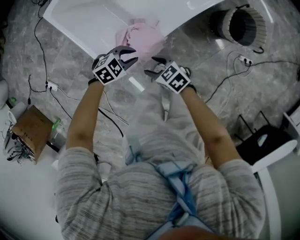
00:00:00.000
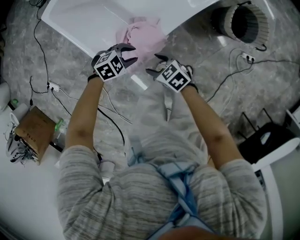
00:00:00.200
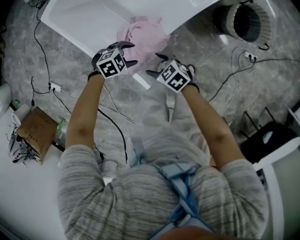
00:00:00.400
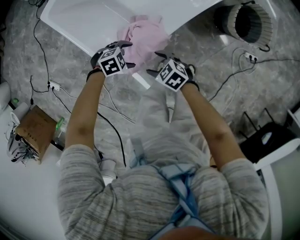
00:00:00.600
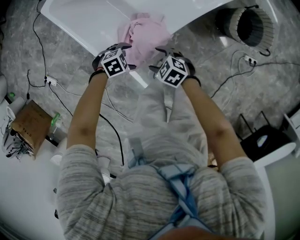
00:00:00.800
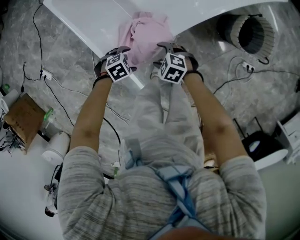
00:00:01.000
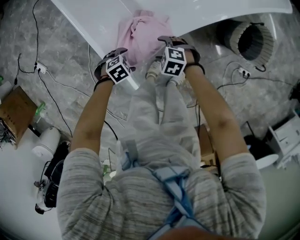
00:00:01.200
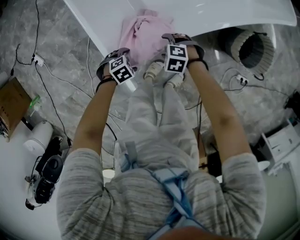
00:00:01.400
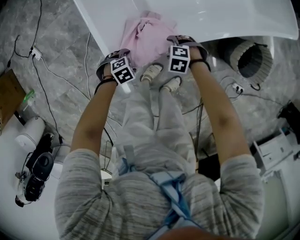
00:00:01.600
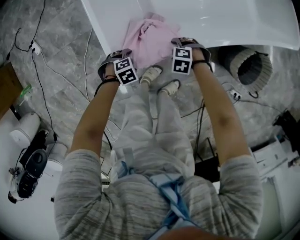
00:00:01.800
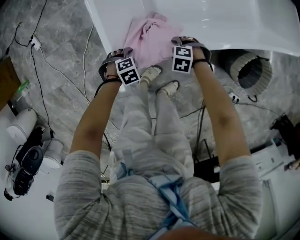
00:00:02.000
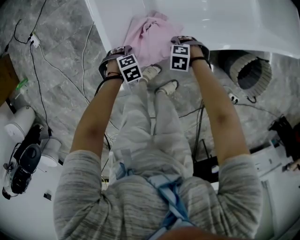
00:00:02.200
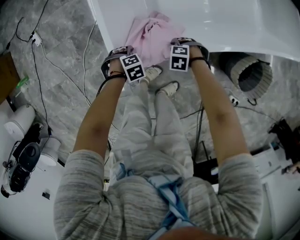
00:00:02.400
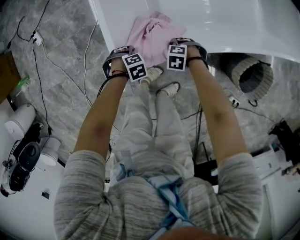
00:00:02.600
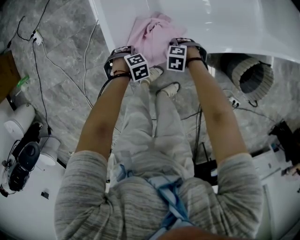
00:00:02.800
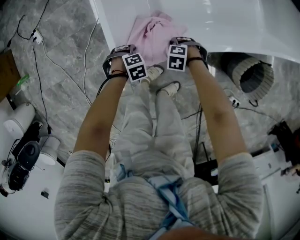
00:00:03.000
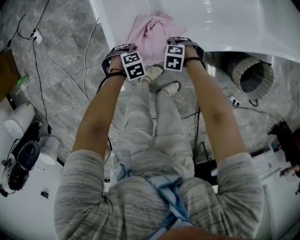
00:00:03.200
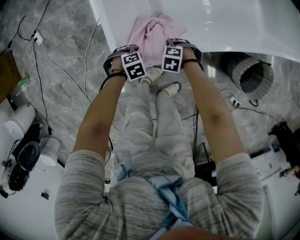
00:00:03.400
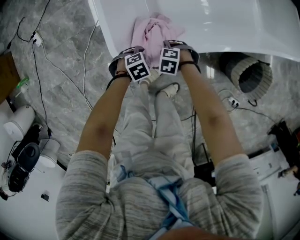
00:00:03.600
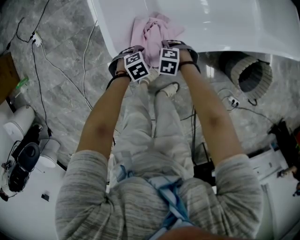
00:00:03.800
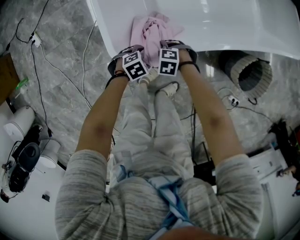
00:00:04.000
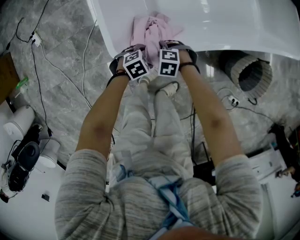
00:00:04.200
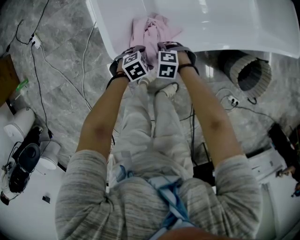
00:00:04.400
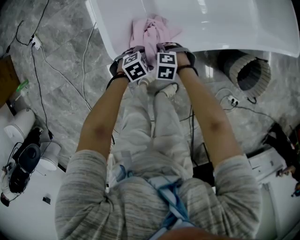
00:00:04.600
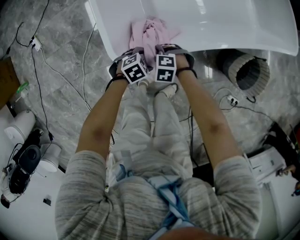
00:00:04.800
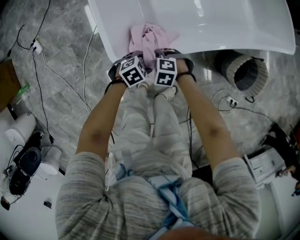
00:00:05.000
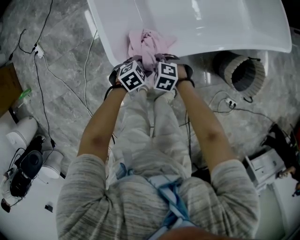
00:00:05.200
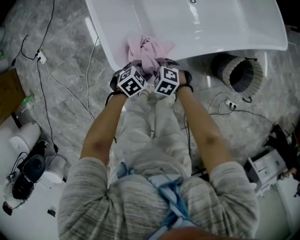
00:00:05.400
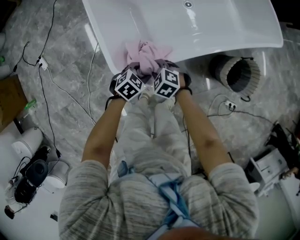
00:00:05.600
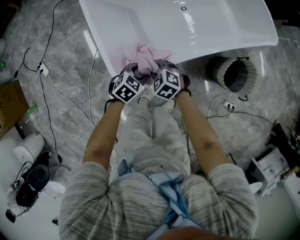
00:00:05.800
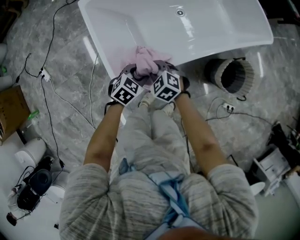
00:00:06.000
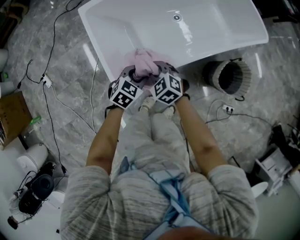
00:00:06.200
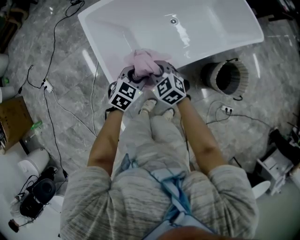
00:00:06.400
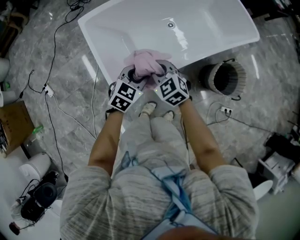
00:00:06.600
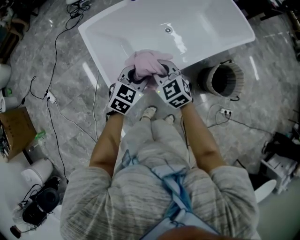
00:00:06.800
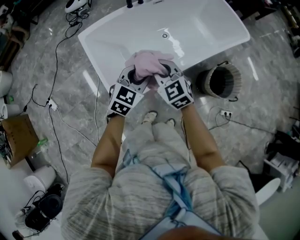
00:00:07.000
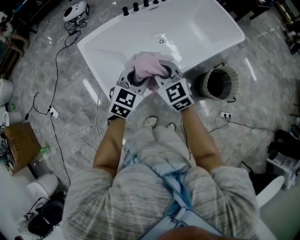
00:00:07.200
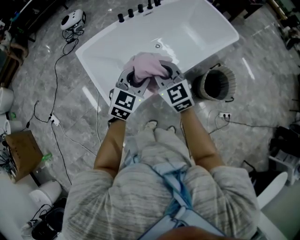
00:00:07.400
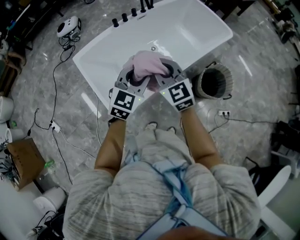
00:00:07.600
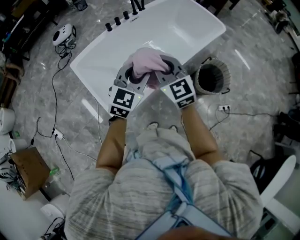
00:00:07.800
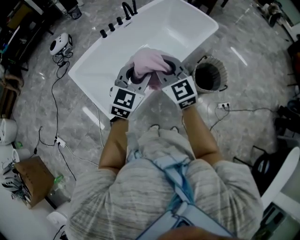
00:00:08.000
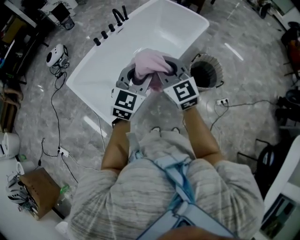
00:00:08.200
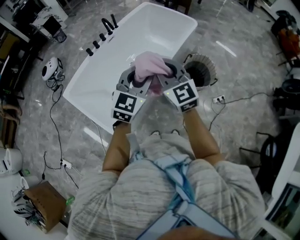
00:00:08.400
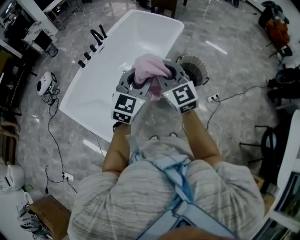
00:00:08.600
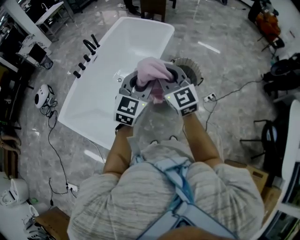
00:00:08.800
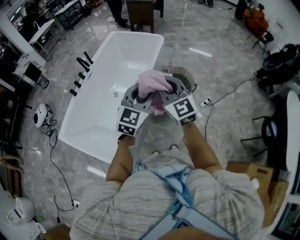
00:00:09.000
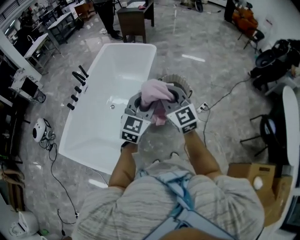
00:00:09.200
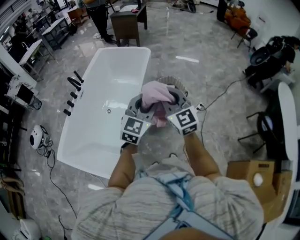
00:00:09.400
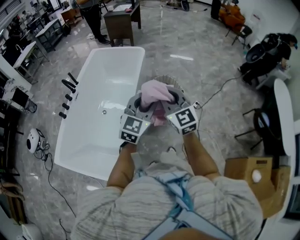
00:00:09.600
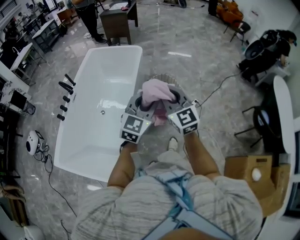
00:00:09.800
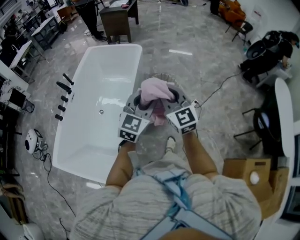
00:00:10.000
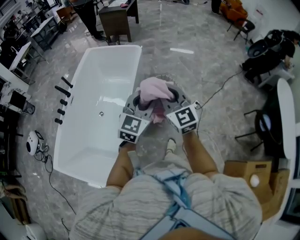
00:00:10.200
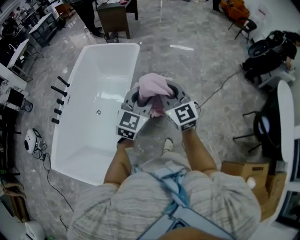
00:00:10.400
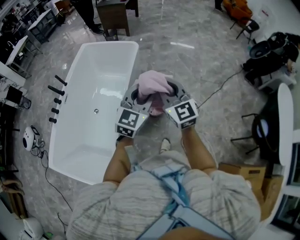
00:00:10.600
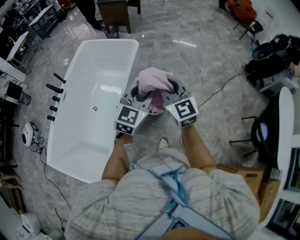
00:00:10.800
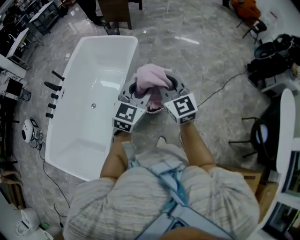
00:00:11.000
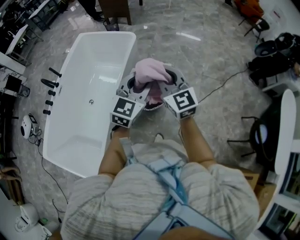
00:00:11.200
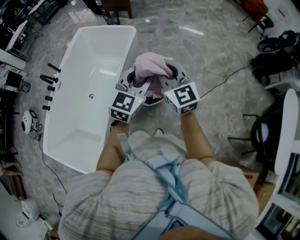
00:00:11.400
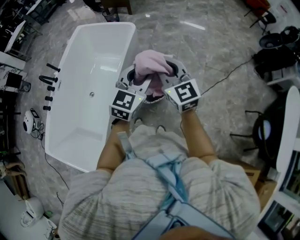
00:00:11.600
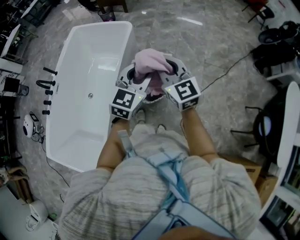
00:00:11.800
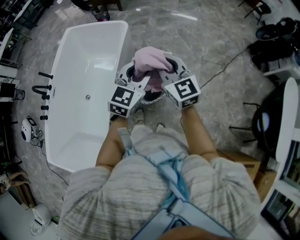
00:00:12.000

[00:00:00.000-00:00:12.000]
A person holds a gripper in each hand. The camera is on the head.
00:00:00.000 to 00:00:01.600: The grippers both shift downward by some 15 cm. The right gripper rotates around the line of its fingers by roughly 60 degrees, counterclockwise from behind. Meanwhile the left gripper rotates roughly 30 degrees, and opens its fingers.
00:00:01.600 to 00:00:03.000: The right gripper travels downward by roughly 5 cm.
00:00:03.000 to 00:00:04.400: The left gripper ends up roughly 10 cm from where it was, and turns by roughly 20 degrees. Meanwhile the right gripper moves approximately 5 cm.
00:00:04.400 to 00:00:06.000: Both grippers travel together upward, roughly 20 cm. The left gripper turns by about 20 degrees, and closes. The right gripper rotates some 40 degrees, and closes.
00:00:06.000 to 00:00:07.600: Both grippers travel together upward, some 35 cm. The left gripper tilts its fingers approximately 30 degrees upward. Meanwhile the right gripper angles its fingers upward, by approximately 40 degrees.
00:00:07.600 to 00:00:09.000: The left gripper changes place by some 25 cm, and swivels about 30 degrees. The right gripper shifts by roughly 25 cm, and rotates roughly 40 degrees.
00:00:09.000 to 00:00:10.400: The two grippers go some 20 cm forward and to the right.
00:00:10.400 to 00:00:12.000: Both grippers travel together forward and to the right, about 25 cm.

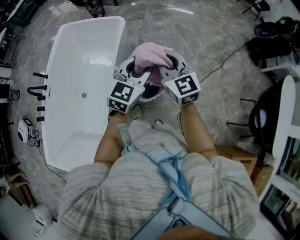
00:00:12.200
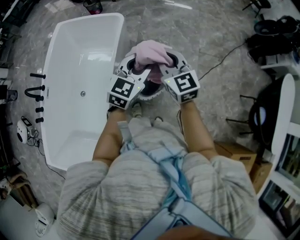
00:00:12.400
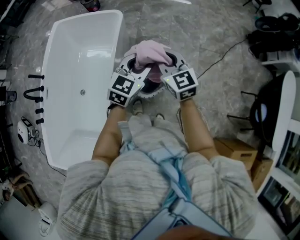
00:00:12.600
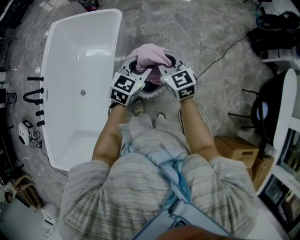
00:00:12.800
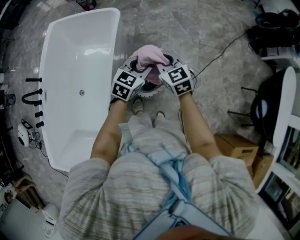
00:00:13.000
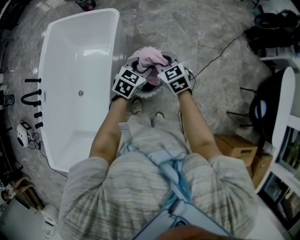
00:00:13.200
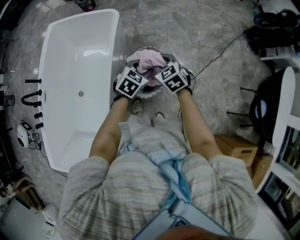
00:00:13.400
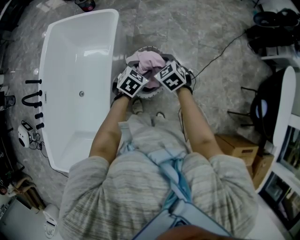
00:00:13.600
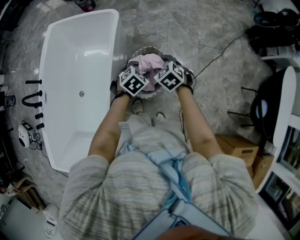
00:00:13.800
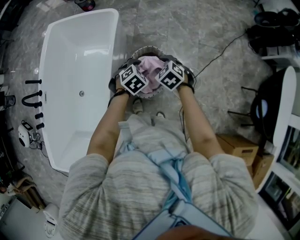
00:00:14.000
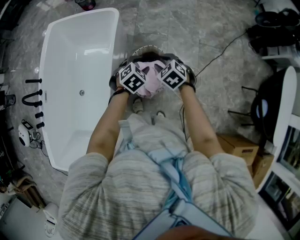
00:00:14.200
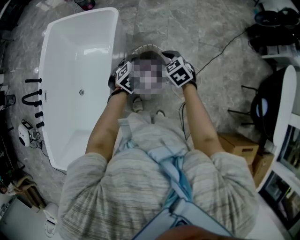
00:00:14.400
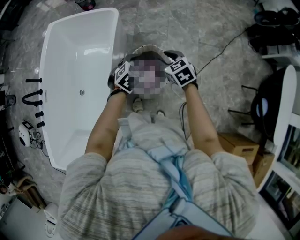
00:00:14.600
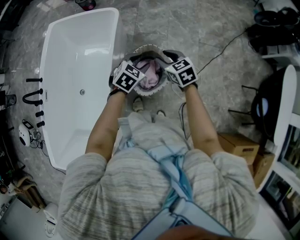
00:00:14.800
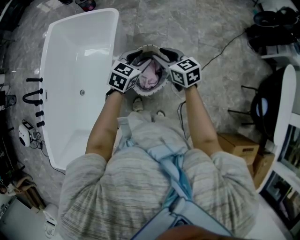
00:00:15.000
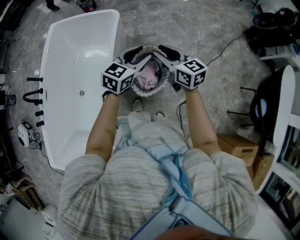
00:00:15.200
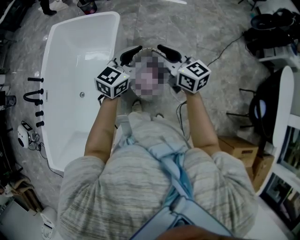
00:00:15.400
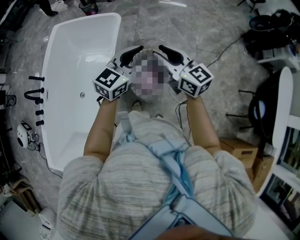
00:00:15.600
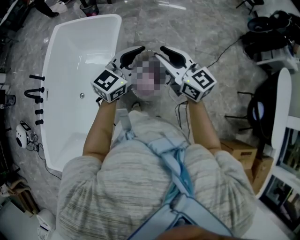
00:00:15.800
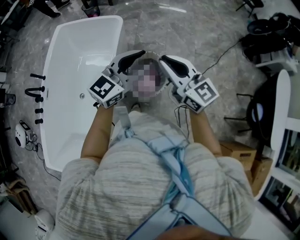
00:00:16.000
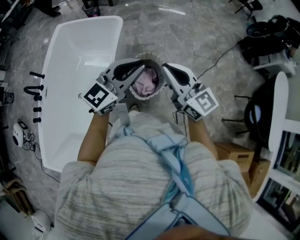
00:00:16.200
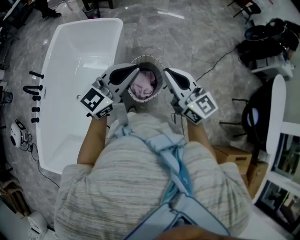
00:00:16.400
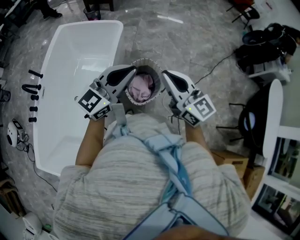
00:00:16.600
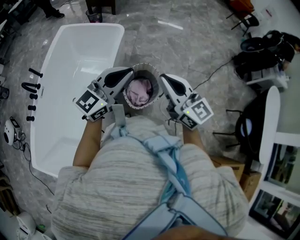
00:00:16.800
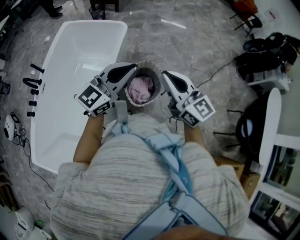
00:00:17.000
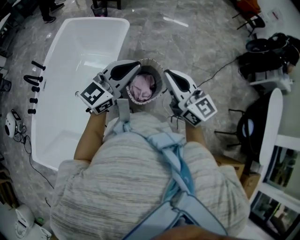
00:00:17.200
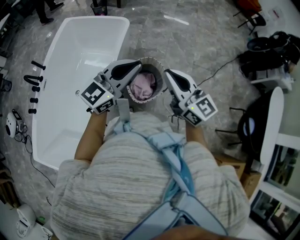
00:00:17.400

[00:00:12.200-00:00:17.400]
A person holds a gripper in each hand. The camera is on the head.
00:00:12.200 to 00:00:14.000: Both grippers move downward, some 25 cm. The right gripper angles its fingers downward, by some 50 degrees, and opens its fingers; the left gripper tilts its fingers approximately 50 degrees downward.
00:00:14.000 to 00:00:15.600: The grippers both shift upward by approximately 25 cm. The left gripper tips its fingers upward by some 50 degrees. The right gripper tilts its fingers about 50 degrees upward.
00:00:15.600 to 00:00:17.400: Both grippers travel together backward and upward, roughly 10 cm. The left gripper closes; the right gripper closes up.

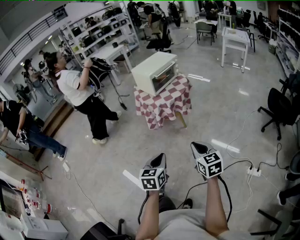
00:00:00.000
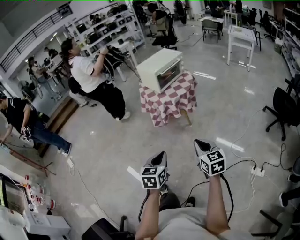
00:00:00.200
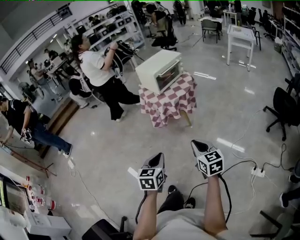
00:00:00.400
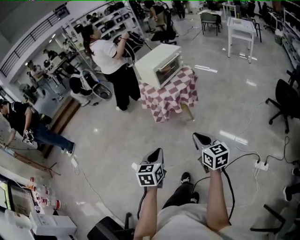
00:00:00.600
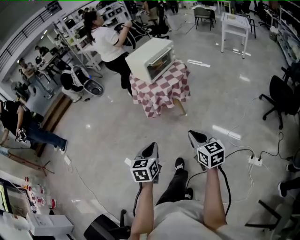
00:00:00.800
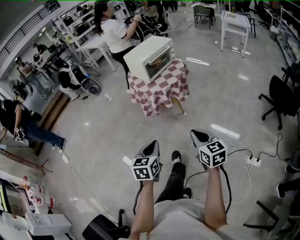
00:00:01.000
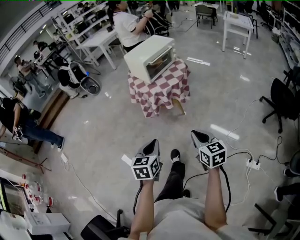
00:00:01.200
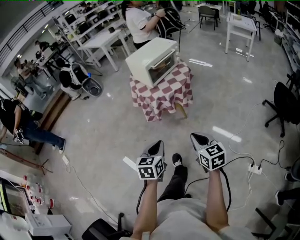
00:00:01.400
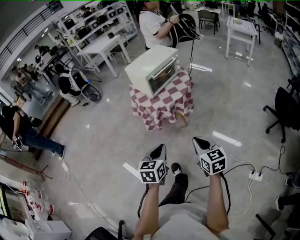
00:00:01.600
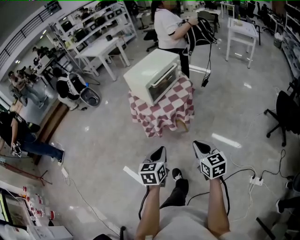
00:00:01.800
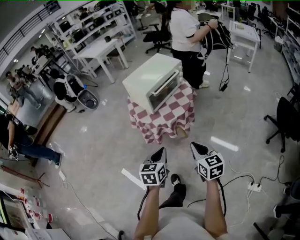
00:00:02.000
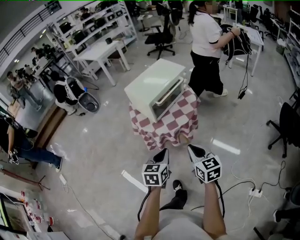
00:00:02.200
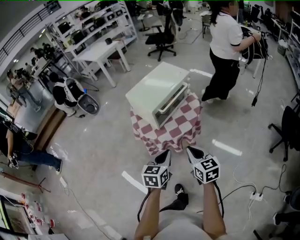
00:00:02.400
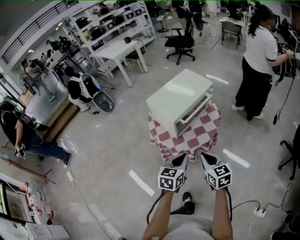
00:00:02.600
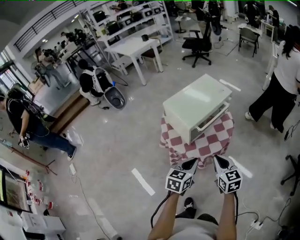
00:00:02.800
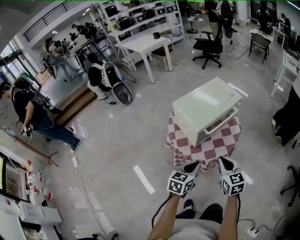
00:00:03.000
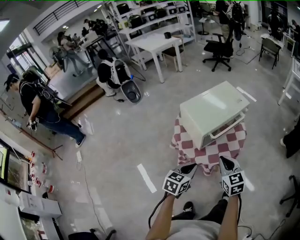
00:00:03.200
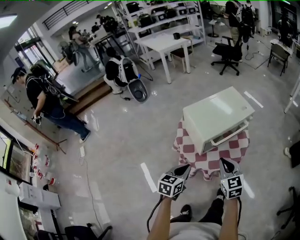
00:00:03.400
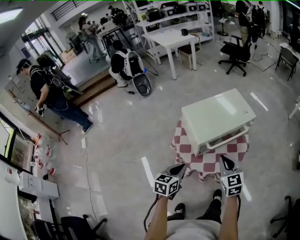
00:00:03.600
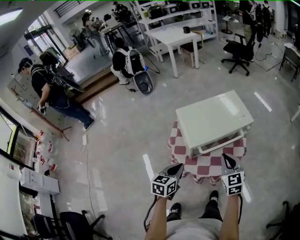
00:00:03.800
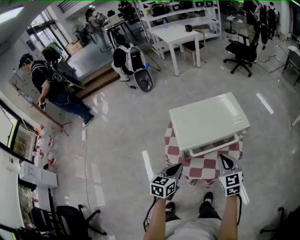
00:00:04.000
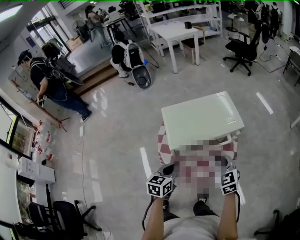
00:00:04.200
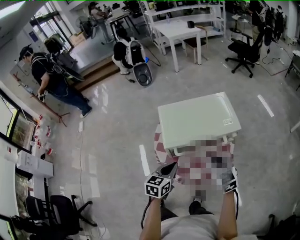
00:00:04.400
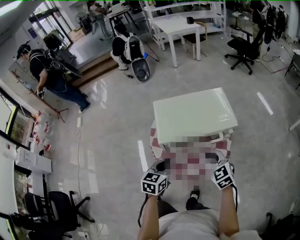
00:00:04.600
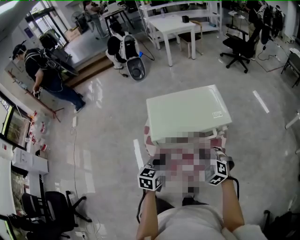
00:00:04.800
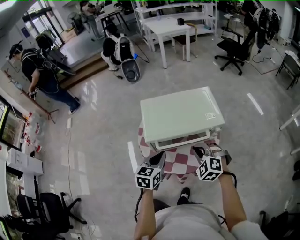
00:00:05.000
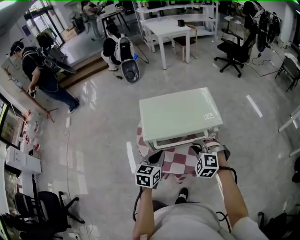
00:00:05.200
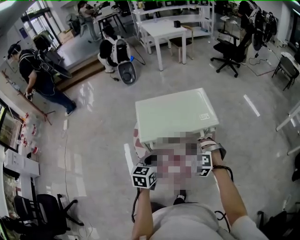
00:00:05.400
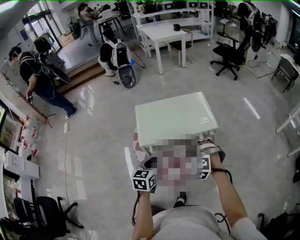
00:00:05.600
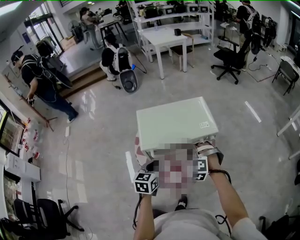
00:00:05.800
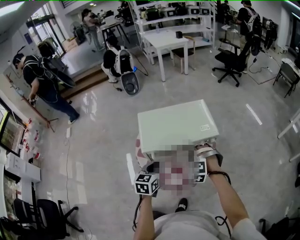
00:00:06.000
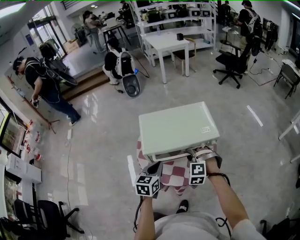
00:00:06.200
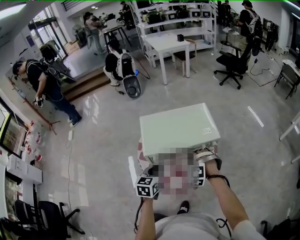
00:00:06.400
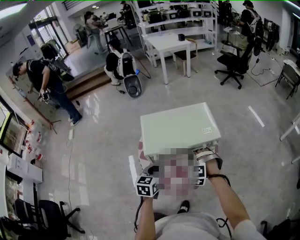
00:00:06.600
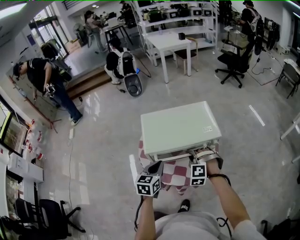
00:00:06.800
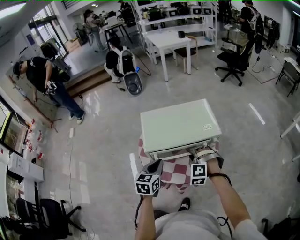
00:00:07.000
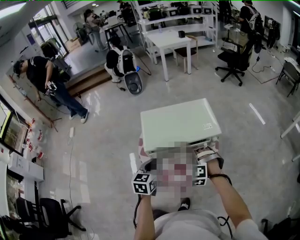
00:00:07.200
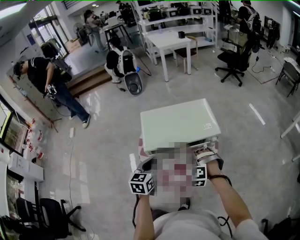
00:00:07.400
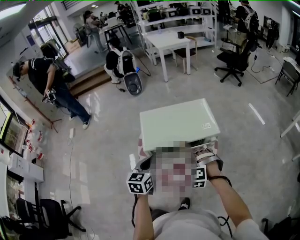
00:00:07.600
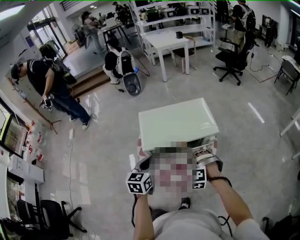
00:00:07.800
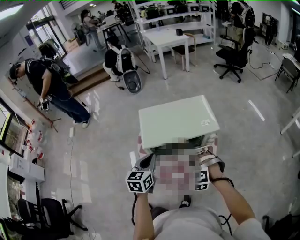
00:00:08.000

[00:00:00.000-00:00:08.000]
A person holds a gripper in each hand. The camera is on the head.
00:00:00.000 to 00:00:01.600: Both grippers move forward, some 20 cm.
00:00:01.600 to 00:00:03.200: The two grippers go approximately 35 cm forward.
00:00:03.200 to 00:00:04.800: The right gripper shifts by some 25 cm, and rotates around the line of its fingers by about 50 degrees, counterclockwise from behind, while the left gripper changes place by roughly 20 cm, and swivels approximately 30 degrees.
00:00:04.800 to 00:00:06.400: The right gripper shifts about 5 cm forward, rotates about 40 degrees, and opens its fingers.
00:00:06.400 to 00:00:08.000: The right gripper is displaced backward by approximately 5 cm.
